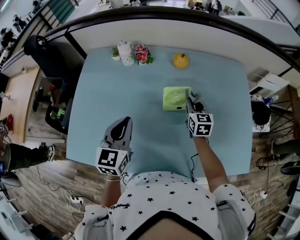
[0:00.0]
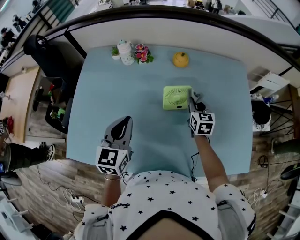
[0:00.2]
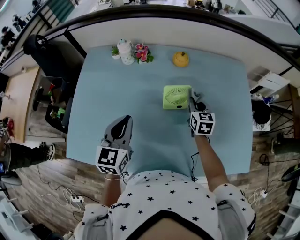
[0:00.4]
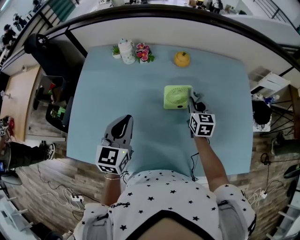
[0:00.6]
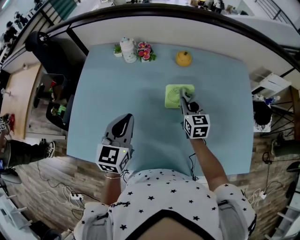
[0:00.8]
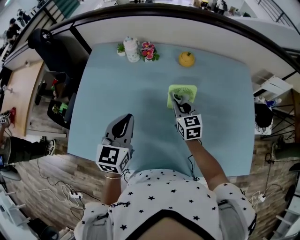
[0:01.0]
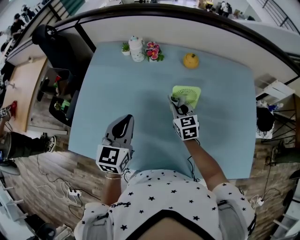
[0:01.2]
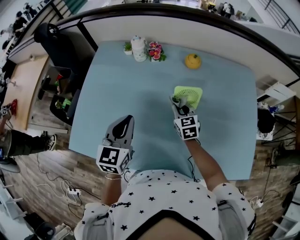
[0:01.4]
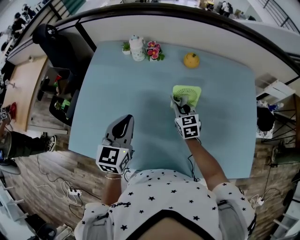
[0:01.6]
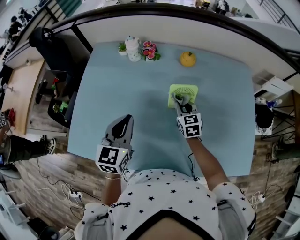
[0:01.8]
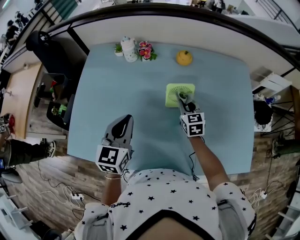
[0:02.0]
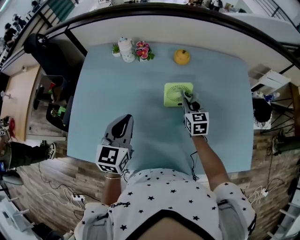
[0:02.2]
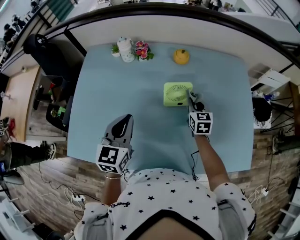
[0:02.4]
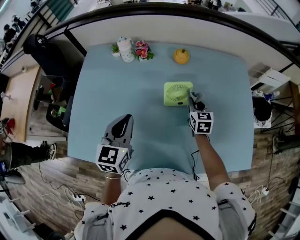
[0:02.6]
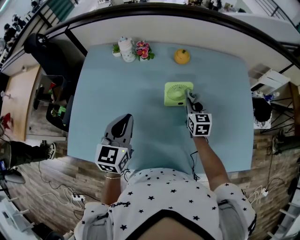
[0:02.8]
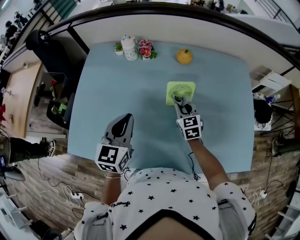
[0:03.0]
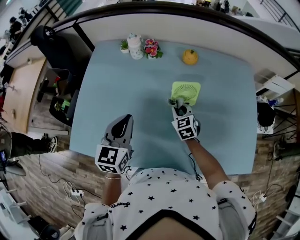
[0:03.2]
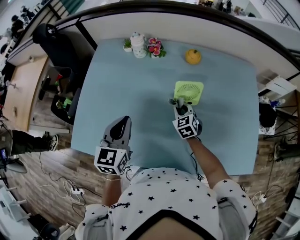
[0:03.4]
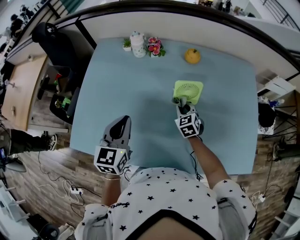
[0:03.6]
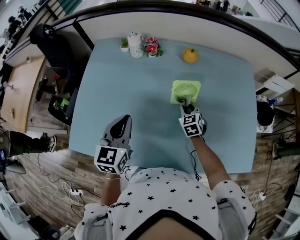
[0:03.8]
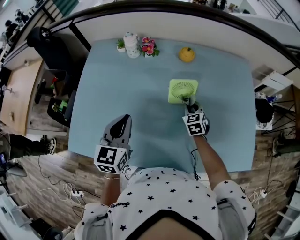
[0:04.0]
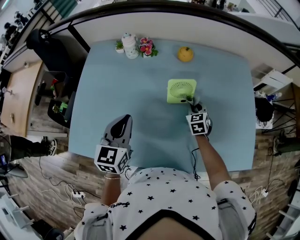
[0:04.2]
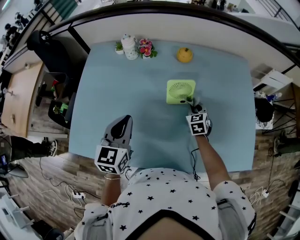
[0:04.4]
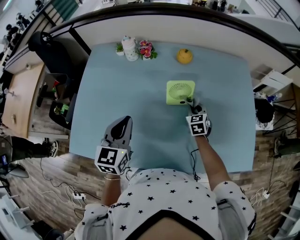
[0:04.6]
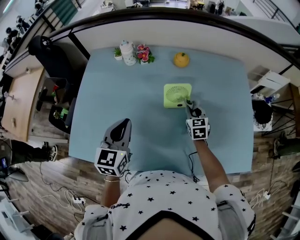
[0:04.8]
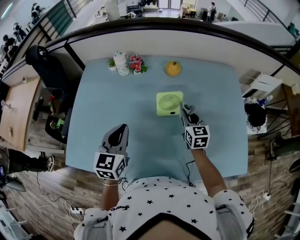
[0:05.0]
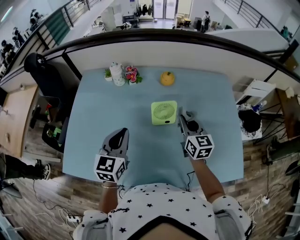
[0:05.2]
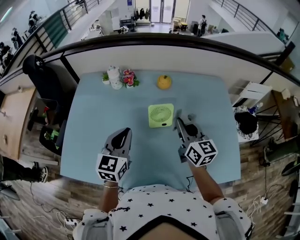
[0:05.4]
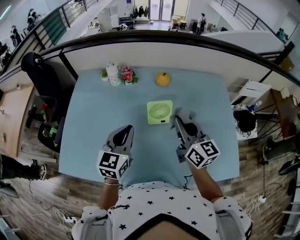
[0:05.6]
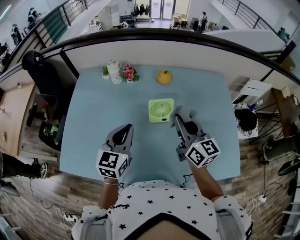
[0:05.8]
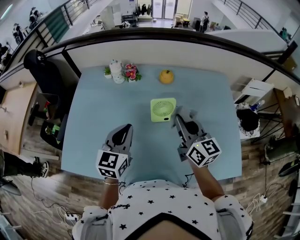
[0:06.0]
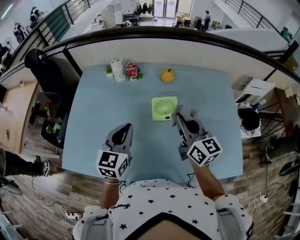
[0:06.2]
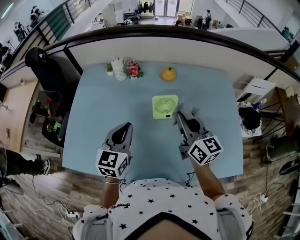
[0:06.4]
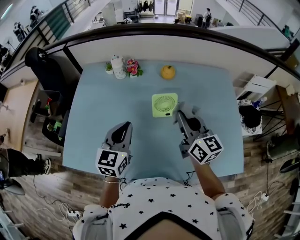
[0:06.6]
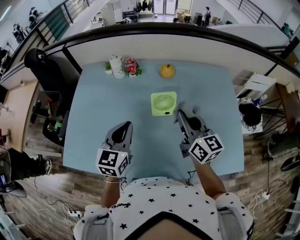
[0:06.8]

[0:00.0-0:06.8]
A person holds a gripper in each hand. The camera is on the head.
0:00.0 to 0:01.4: The right gripper heads to the left, covering about 10 cm.
0:01.4 to 0:02.8: The right gripper heads to the right, covering some 10 cm.
0:02.8 to 0:04.0: The right gripper travels downward by about 5 cm, travels to the left and back again, some 10 cm each way, and swivels about 20 degrees.
0:04.0 to 0:05.4: The left gripper is displaced to the right by about 5 cm, while the right gripper goes some 20 cm upward, and tips its fingers upward by approximately 30 degrees.
0:05.4 to 0:06.8: The grippers move only a little.

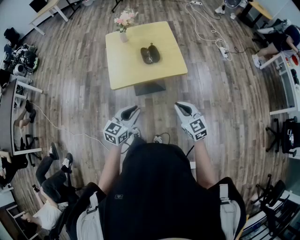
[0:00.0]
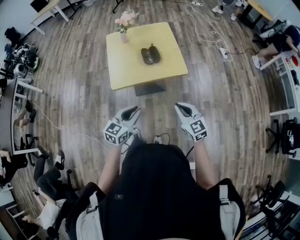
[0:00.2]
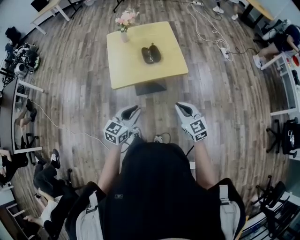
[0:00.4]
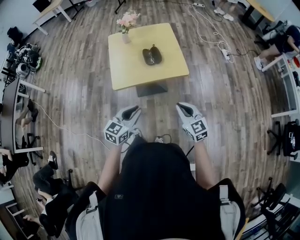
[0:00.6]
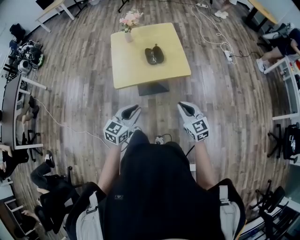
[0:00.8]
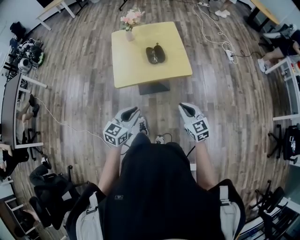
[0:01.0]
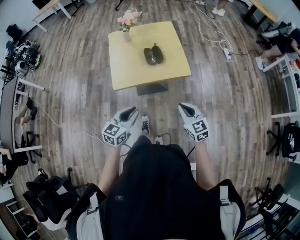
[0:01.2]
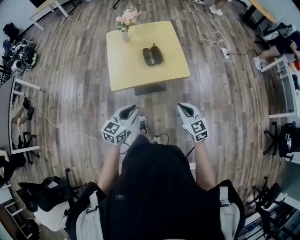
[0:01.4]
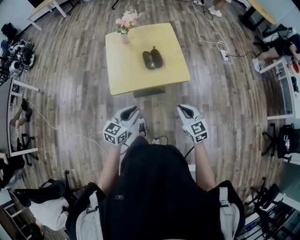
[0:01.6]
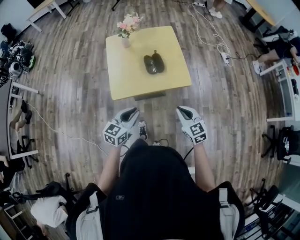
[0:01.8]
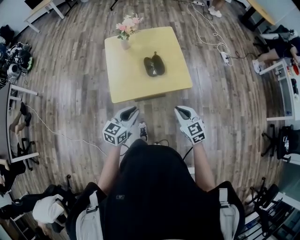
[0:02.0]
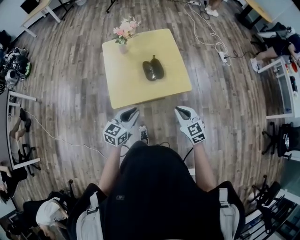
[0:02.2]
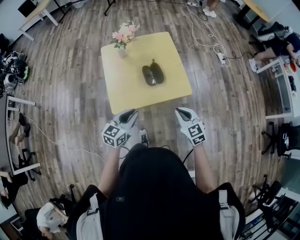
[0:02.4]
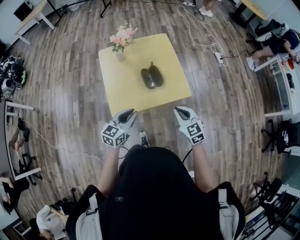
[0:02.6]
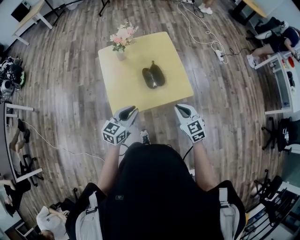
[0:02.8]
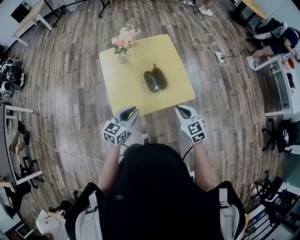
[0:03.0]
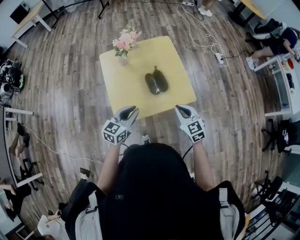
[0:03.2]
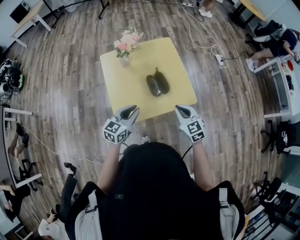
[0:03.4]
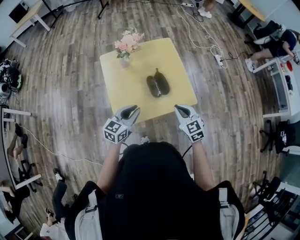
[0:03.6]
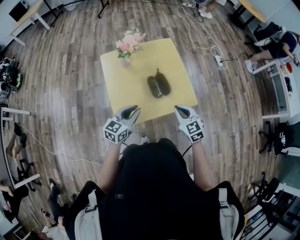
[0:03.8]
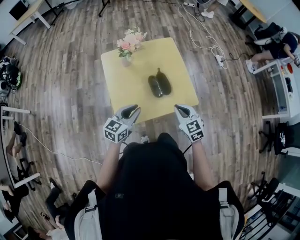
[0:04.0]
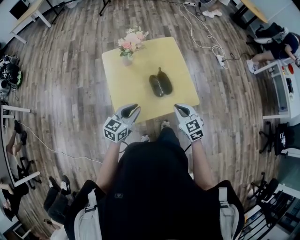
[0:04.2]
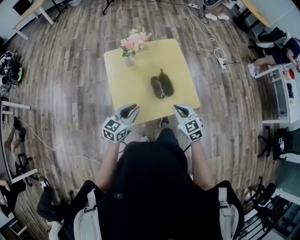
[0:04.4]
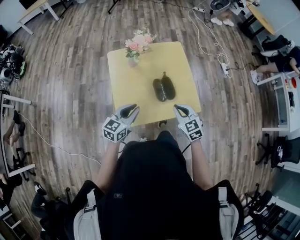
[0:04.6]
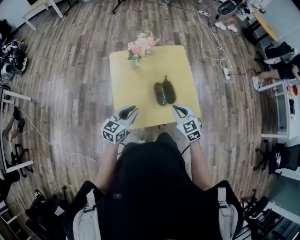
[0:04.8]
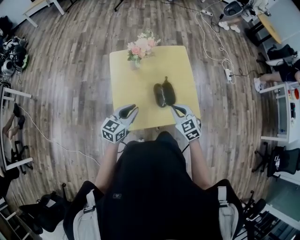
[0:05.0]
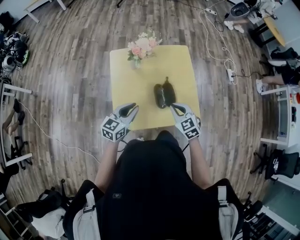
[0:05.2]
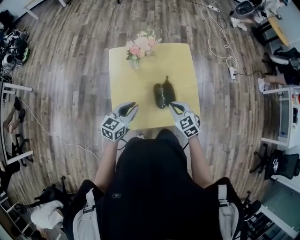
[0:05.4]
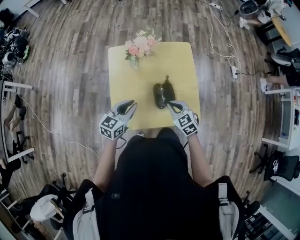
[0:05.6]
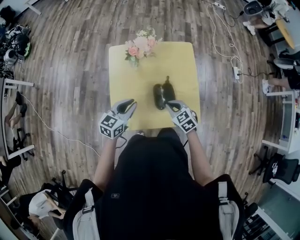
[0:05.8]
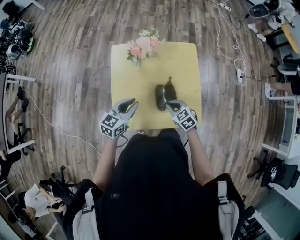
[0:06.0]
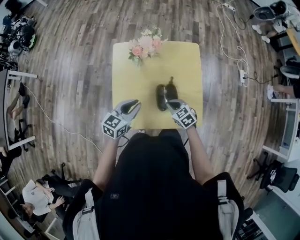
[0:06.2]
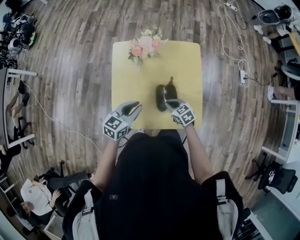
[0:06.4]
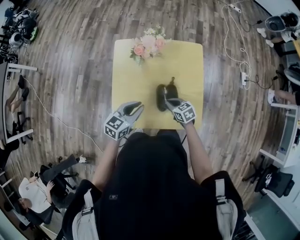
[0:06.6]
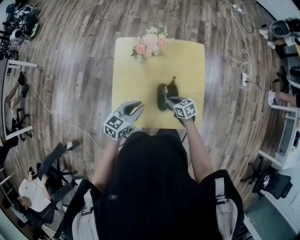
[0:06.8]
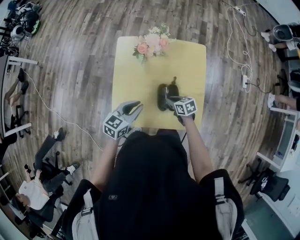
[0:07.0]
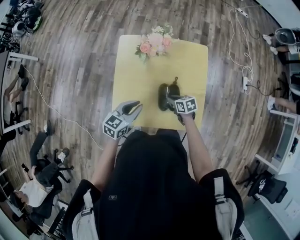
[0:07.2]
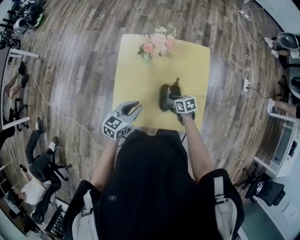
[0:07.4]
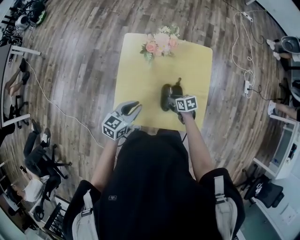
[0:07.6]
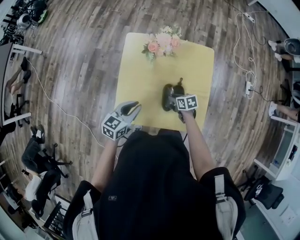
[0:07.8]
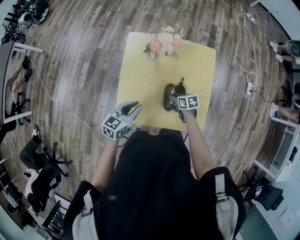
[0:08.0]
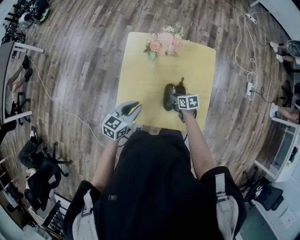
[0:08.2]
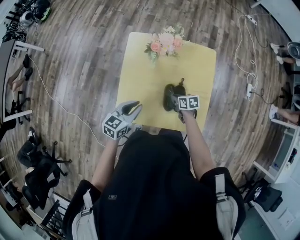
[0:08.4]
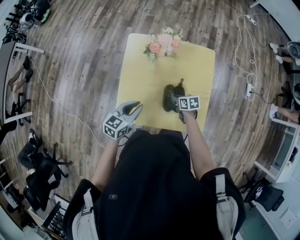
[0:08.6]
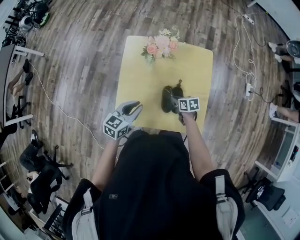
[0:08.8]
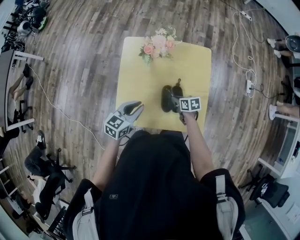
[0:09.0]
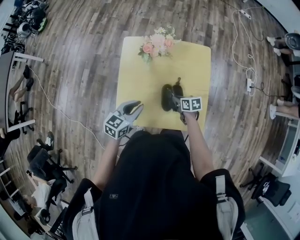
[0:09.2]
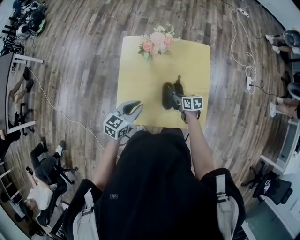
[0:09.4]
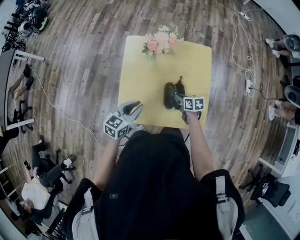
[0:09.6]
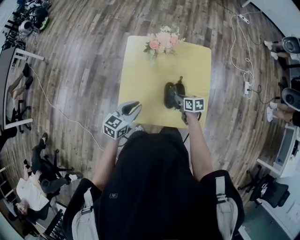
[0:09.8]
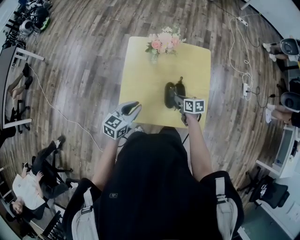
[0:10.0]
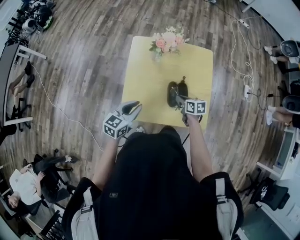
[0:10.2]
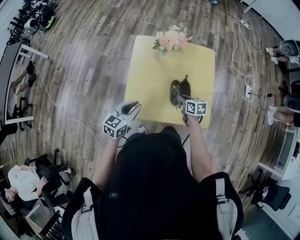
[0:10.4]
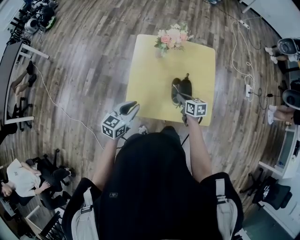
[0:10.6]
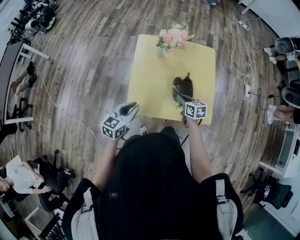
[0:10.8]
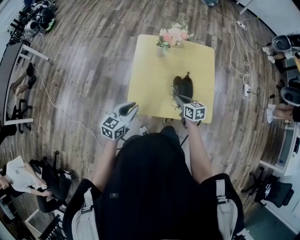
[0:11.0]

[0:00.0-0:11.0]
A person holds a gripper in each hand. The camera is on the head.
0:00.0 to 0:01.6: Both grippers travel together forward, some 5 cm.
0:01.6 to 0:03.2: Both grippers travel together forward and to the left, approximately 20 cm.
0:03.2 to 0:04.8: The grippers both shift forward and to the left by approximately 10 cm.
0:04.8 to 0:06.2: The left gripper shifts about 10 cm forward; the right gripper travels downward and forward by approximately 15 cm, and turns by about 30 degrees.
0:06.2 to 0:07.8: The right gripper goes some 10 cm downward and forward, swivels approximately 30 degrees, and opens.
0:07.8 to 0:09.4: The grippers stay close to where they were, moving slightly.
0:09.4 to 0:11.0: The left gripper shifts roughly 15 cm to the left and backward, while the right gripper goes about 15 cm upward, backward and to the left.

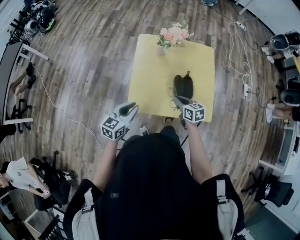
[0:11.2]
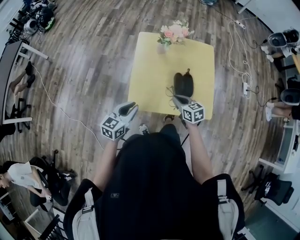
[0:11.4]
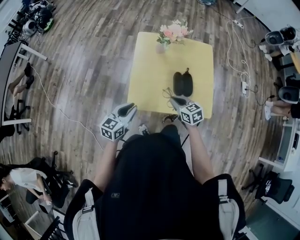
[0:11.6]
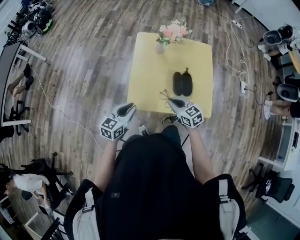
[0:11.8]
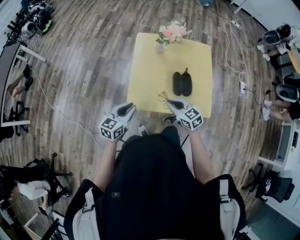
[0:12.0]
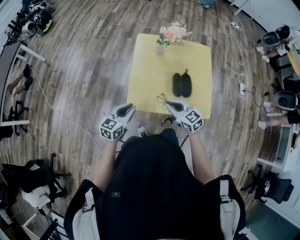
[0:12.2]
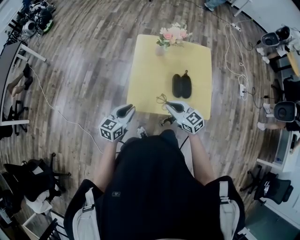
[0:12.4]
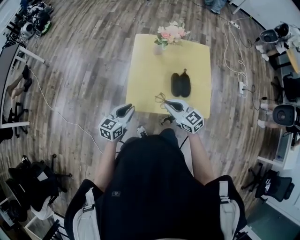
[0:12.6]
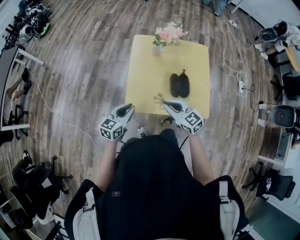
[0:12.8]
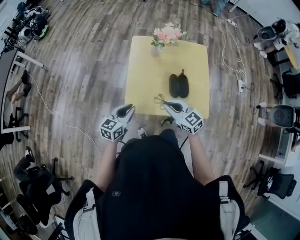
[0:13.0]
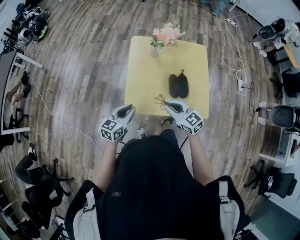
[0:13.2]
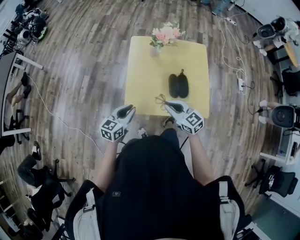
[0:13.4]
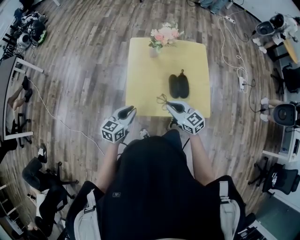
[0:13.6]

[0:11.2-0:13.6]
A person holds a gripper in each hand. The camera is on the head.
0:11.2 to 0:12.4: The right gripper is displaced upward, to the left and backward by about 10 cm, and rotates about 30 degrees.
0:12.4 to 0:13.6: The grippers move only a little.

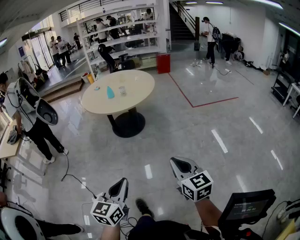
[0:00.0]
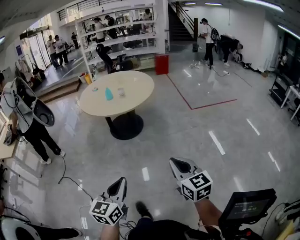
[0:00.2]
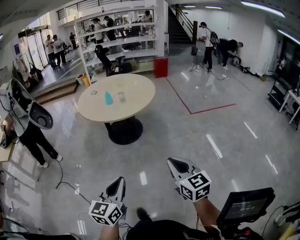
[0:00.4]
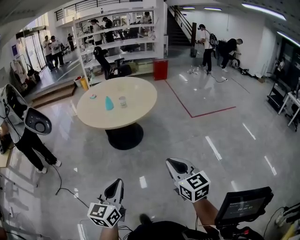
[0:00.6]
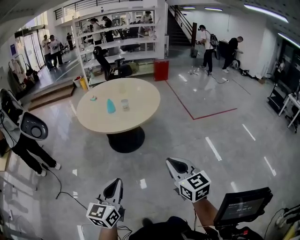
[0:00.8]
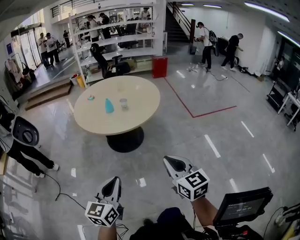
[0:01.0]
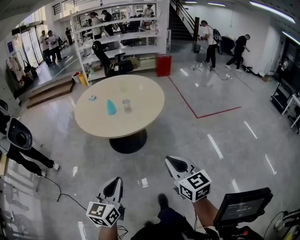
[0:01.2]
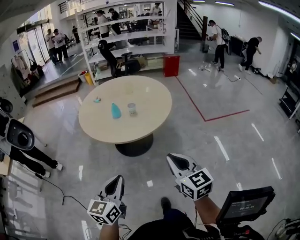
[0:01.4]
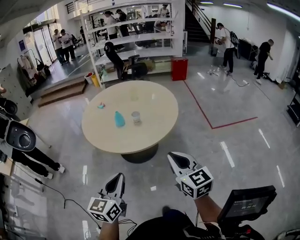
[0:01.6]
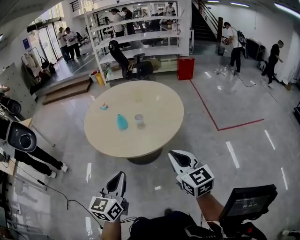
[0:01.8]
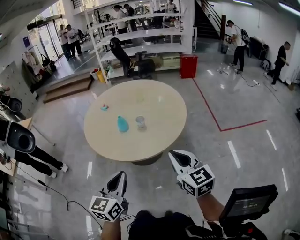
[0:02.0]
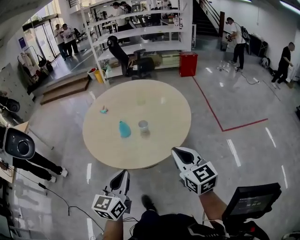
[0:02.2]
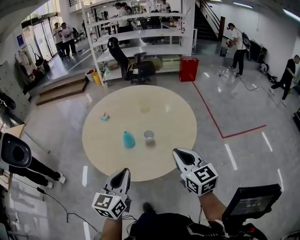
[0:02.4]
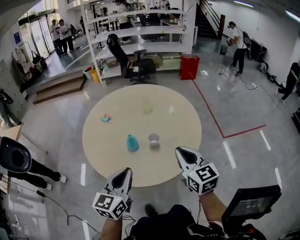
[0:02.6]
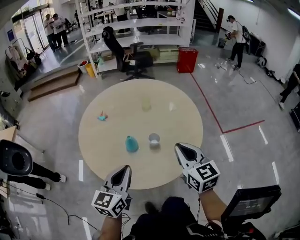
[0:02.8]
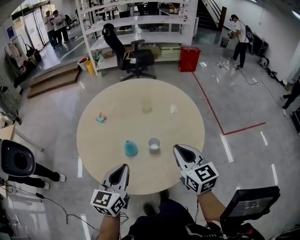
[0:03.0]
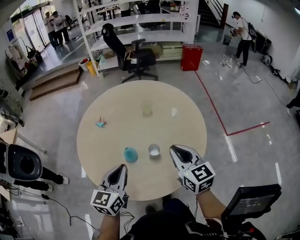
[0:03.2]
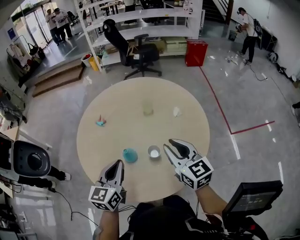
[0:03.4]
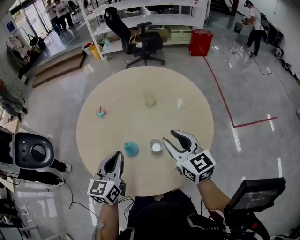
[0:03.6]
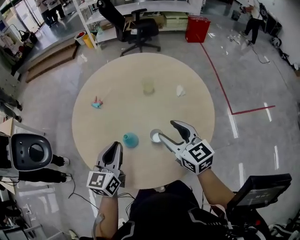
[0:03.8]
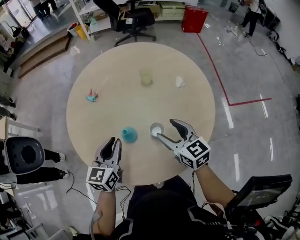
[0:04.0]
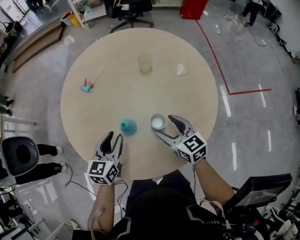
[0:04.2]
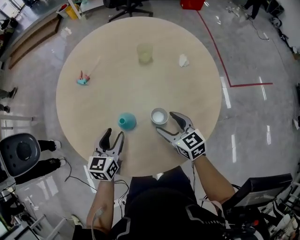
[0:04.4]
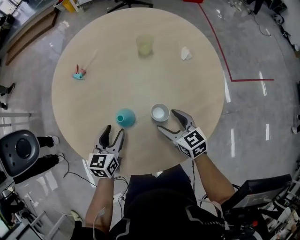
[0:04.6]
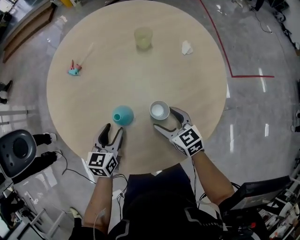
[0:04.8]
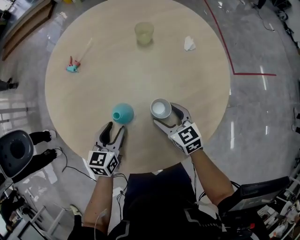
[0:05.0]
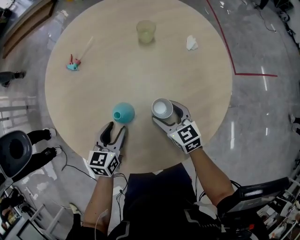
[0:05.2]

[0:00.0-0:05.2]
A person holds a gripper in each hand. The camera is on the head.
0:00.0 to 0:01.8: The pair of grippers is taken forward, roughly 50 cm.
0:01.8 to 0:03.4: The grippers both shift forward by about 40 cm.
0:03.4 to 0:05.2: Both grippers move downward, approximately 25 cm. The left gripper swivels approximately 20 degrees, and opens its fingers; the right gripper turns by approximately 20 degrees, and opens up.
